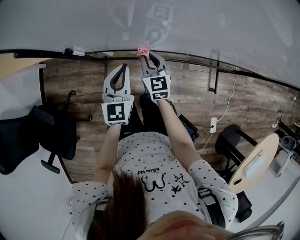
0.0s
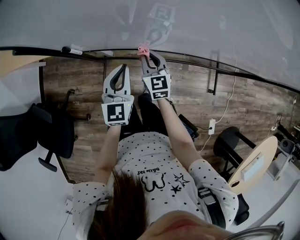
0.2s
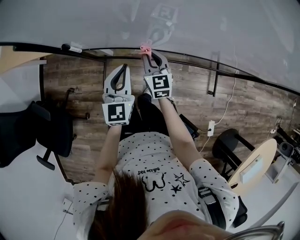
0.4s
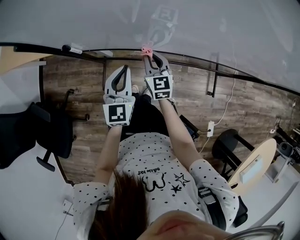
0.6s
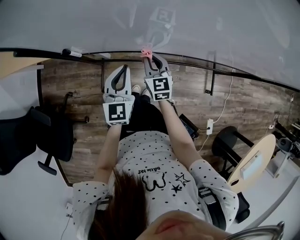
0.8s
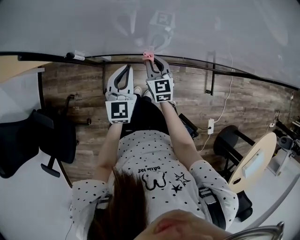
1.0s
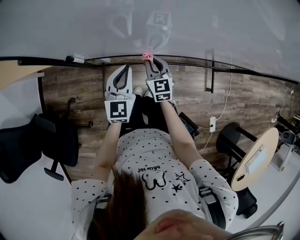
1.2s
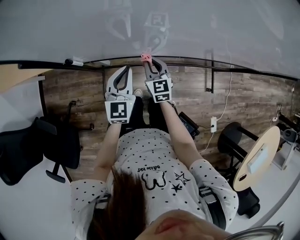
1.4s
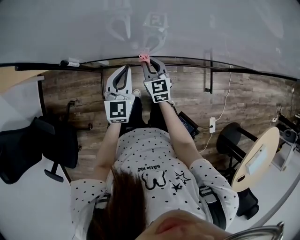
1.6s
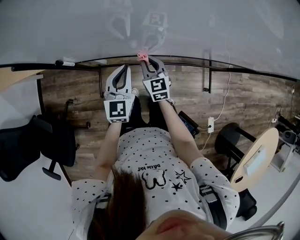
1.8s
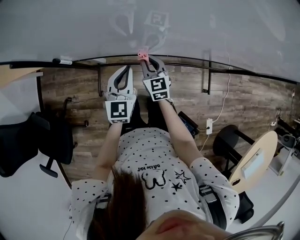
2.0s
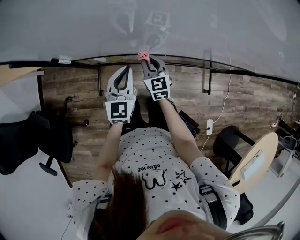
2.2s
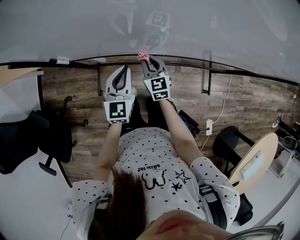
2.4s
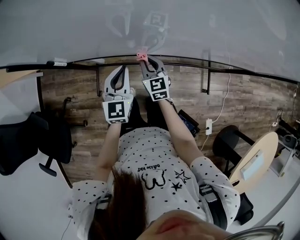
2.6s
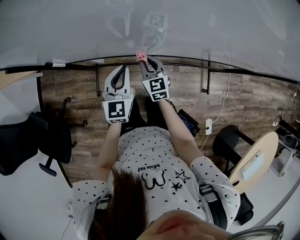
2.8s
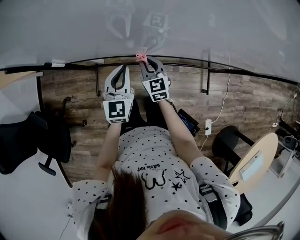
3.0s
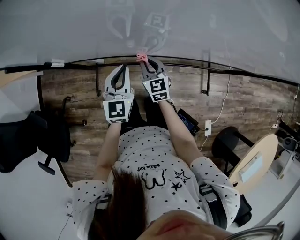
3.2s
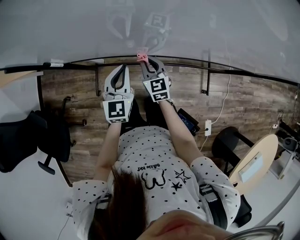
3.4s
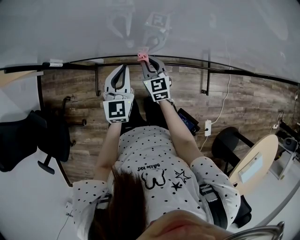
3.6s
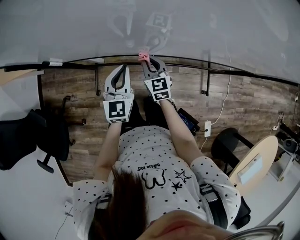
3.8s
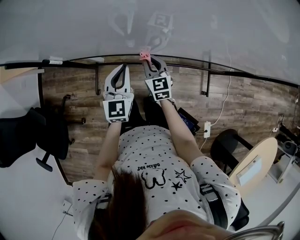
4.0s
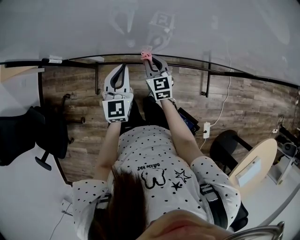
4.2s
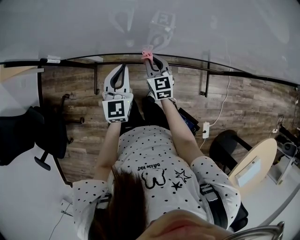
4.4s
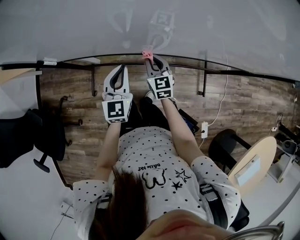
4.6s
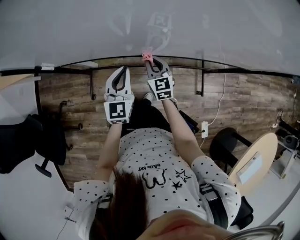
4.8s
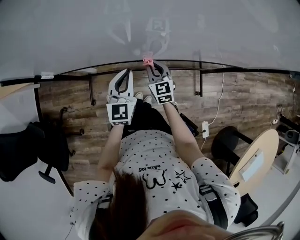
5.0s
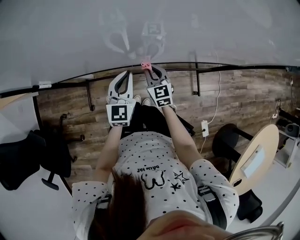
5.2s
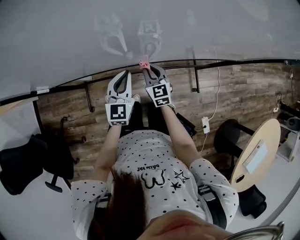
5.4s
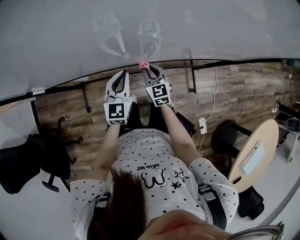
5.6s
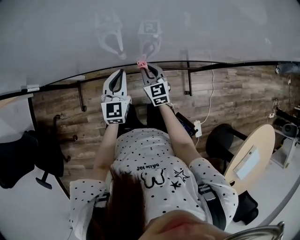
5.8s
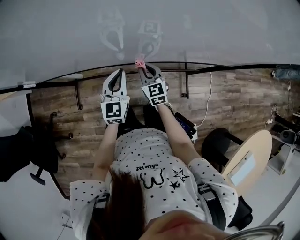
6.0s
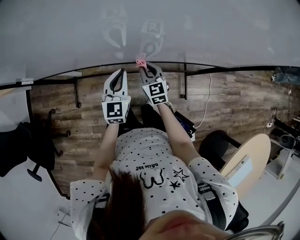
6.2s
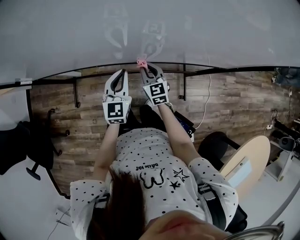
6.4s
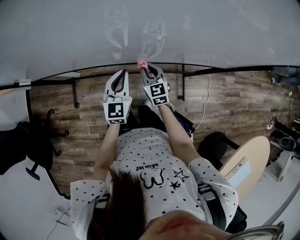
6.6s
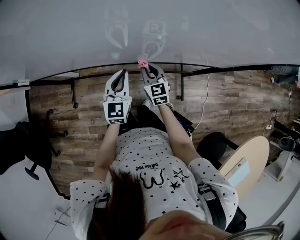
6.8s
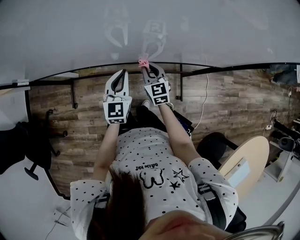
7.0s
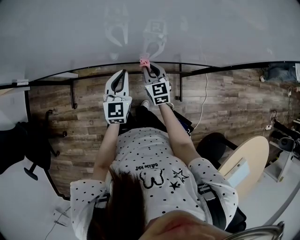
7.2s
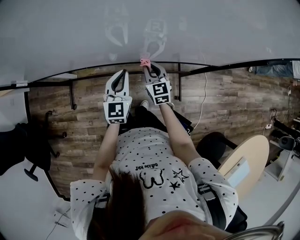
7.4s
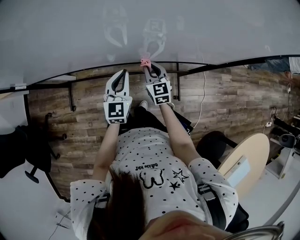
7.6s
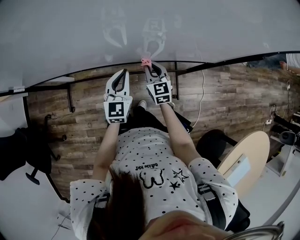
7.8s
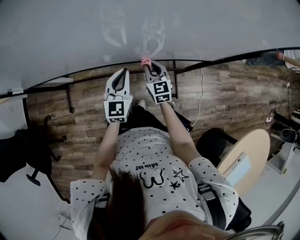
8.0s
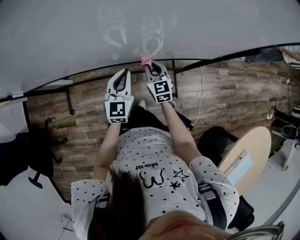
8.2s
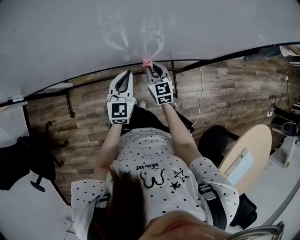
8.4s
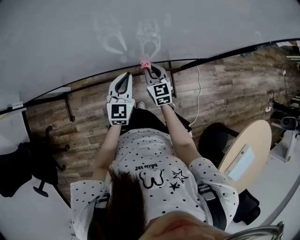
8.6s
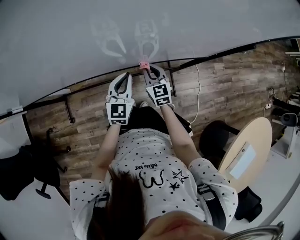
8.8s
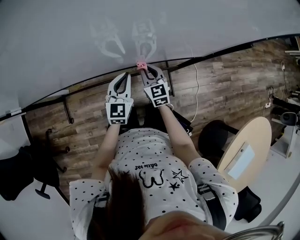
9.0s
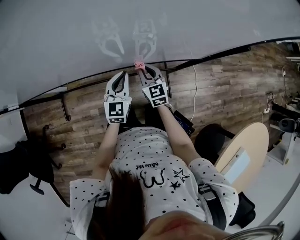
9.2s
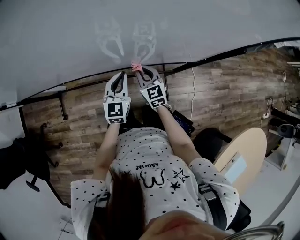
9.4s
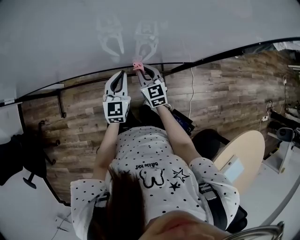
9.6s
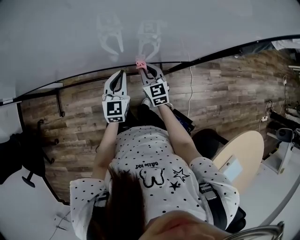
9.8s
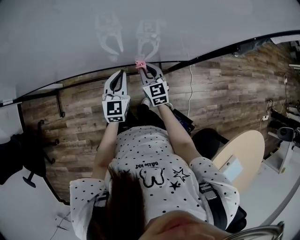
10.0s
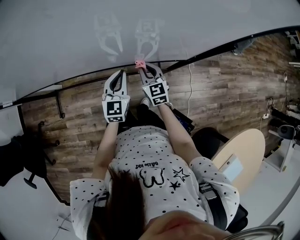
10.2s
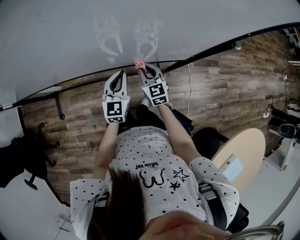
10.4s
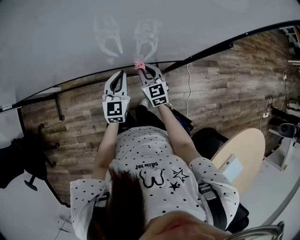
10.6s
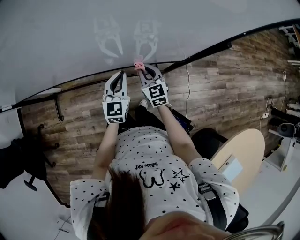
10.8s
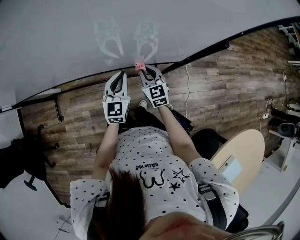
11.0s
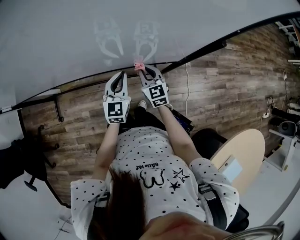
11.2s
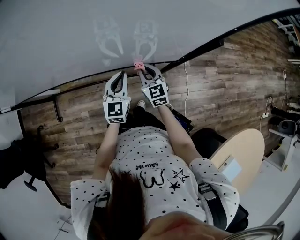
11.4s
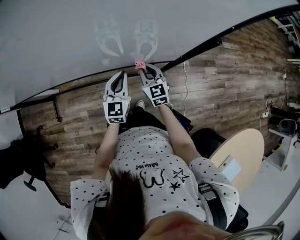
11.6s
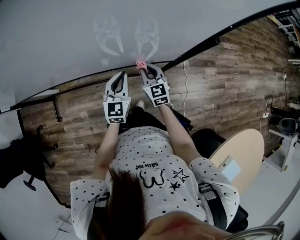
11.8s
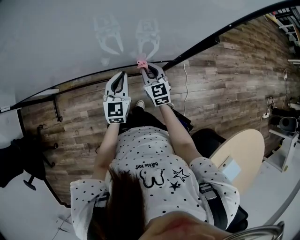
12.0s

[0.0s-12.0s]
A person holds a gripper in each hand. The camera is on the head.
0.0s to 1.6s: There are only small adjustments of the grippers.
1.6s to 3.0s: The two grippers go some 10 cm to the right.
3.0s to 4.4s: The right gripper is displaced to the right by roughly 5 cm.
4.4s to 6.0s: The two grippers go about 15 cm to the right.
6.0s to 7.6s: Both grippers move to the right, roughly 15 cm.
7.6s to 9.0s: The two grippers go roughly 5 cm to the right.
9.0s to 10.4s: Both grippers travel together to the right, approximately 10 cm.
10.4s to 12.0s: The grippers both shift to the right by about 5 cm.

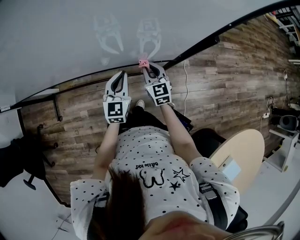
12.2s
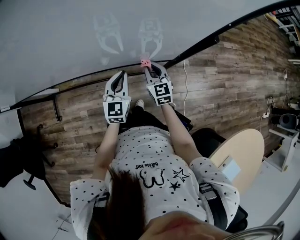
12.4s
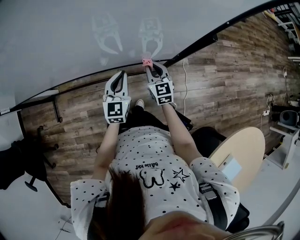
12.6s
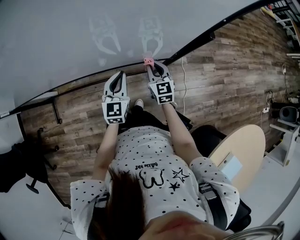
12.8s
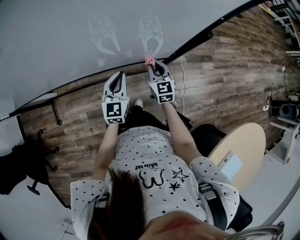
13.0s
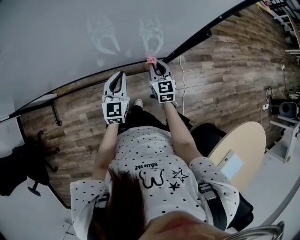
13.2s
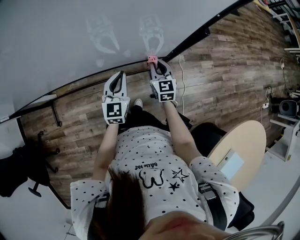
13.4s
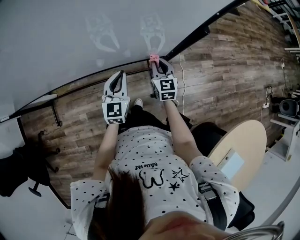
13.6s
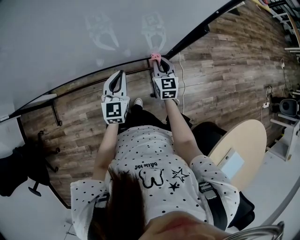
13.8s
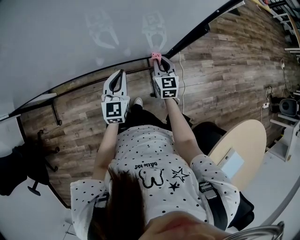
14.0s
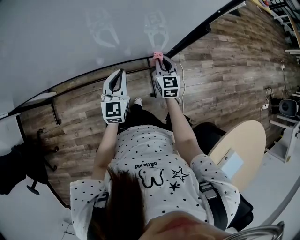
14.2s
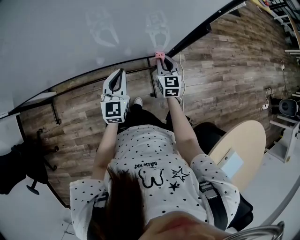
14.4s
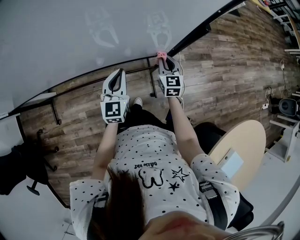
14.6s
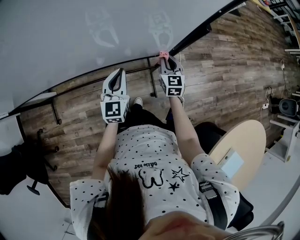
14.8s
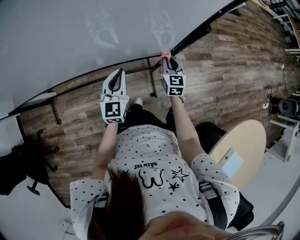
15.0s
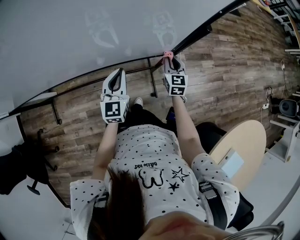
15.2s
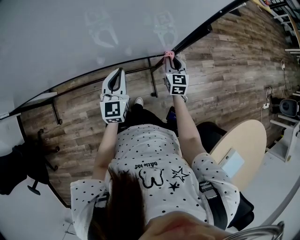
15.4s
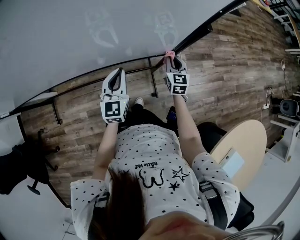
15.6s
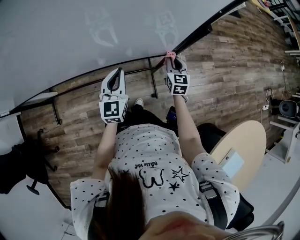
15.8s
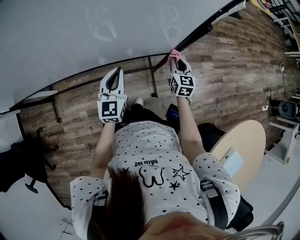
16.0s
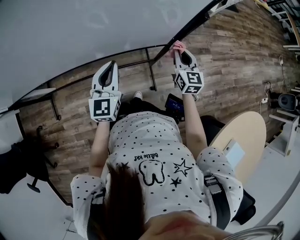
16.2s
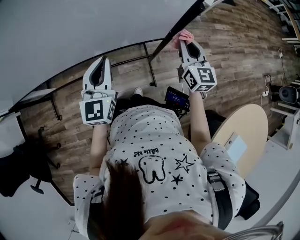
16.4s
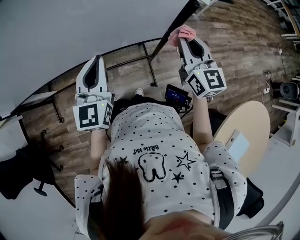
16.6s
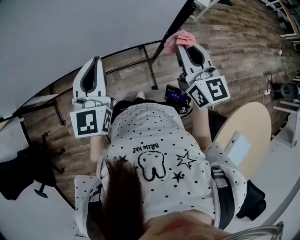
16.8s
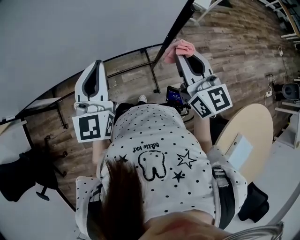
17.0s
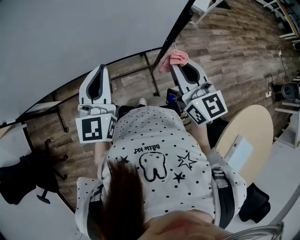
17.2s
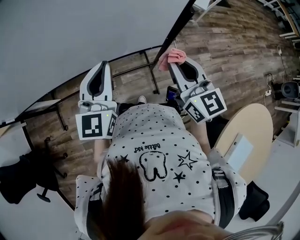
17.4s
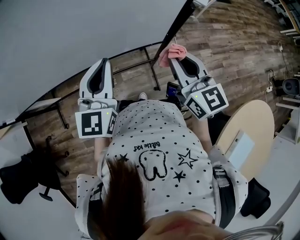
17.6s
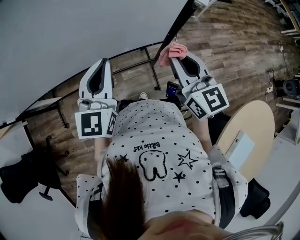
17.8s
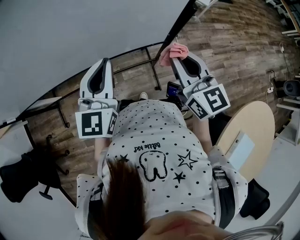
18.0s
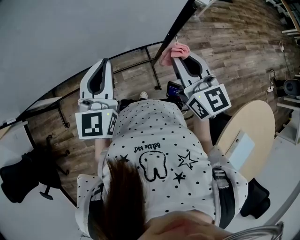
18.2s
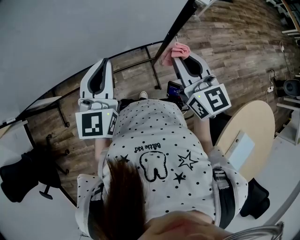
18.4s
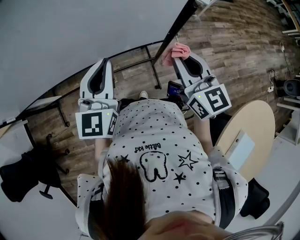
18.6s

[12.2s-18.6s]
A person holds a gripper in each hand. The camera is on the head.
12.2s to 13.8s: The right gripper travels to the right by about 10 cm.
13.8s to 15.4s: The right gripper heads to the right, covering some 5 cm.
15.4s to 17.0s: The left gripper travels upward by approximately 20 cm; the right gripper travels upward and backward by approximately 30 cm, and swivels roughly 30 degrees.
17.0s to 18.6s: The grippers make only small movements.

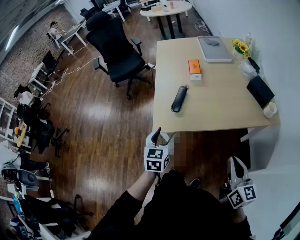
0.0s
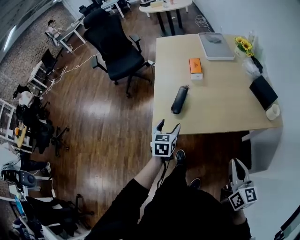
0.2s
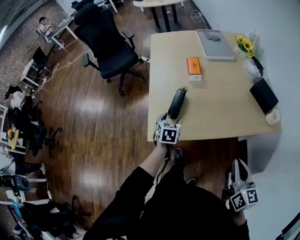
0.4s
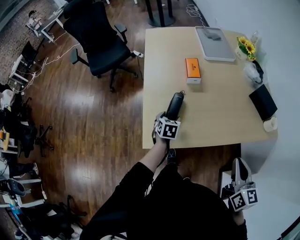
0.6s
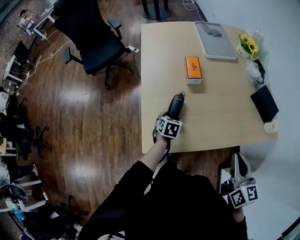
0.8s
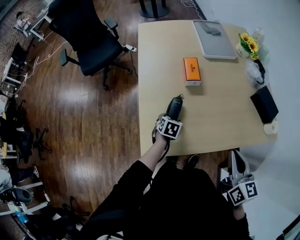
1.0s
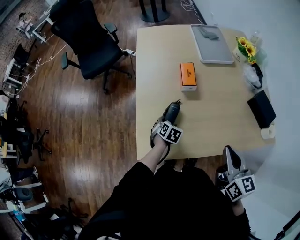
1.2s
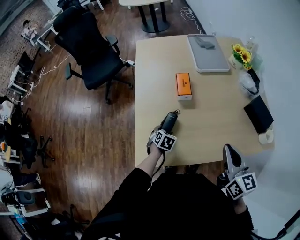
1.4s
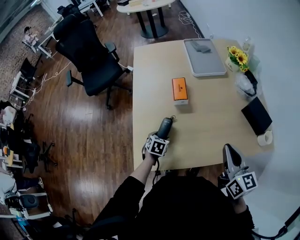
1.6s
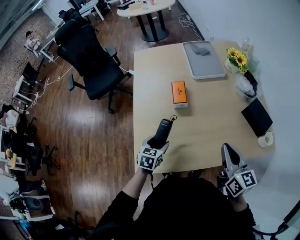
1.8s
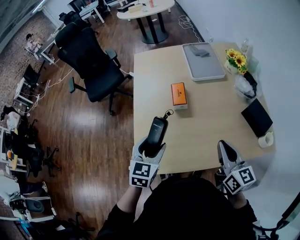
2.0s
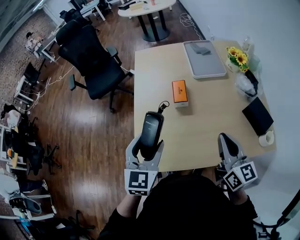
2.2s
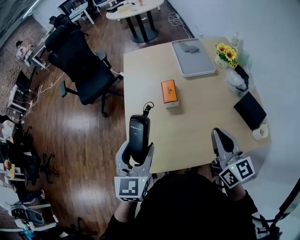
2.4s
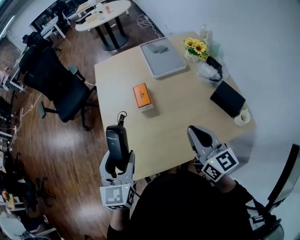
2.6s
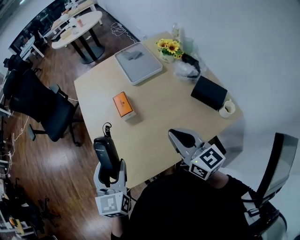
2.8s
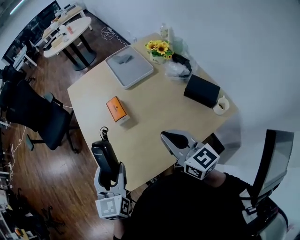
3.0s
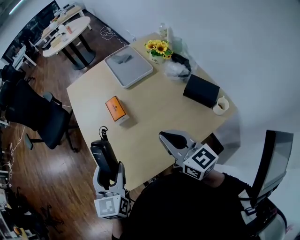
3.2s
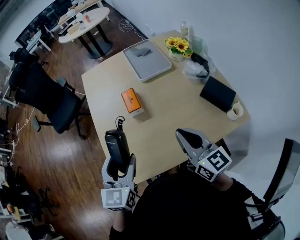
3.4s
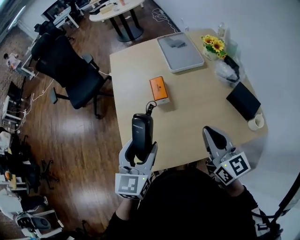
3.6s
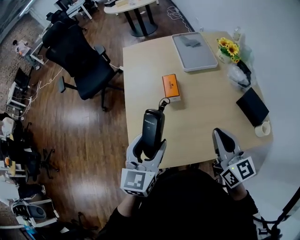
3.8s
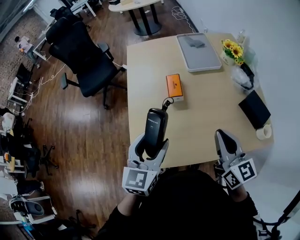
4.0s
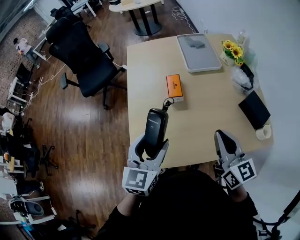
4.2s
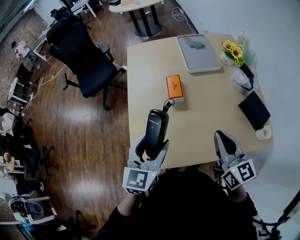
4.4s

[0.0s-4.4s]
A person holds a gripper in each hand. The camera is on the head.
0.0s to 1.4s: The left gripper goes roughly 35 cm forward and downward, and angles its fingers downward, by some 30 degrees, while the right gripper heads forward, covering some 30 cm.
1.4s to 3.0s: The right gripper shifts by about 5 cm; the left gripper moves upward, roughly 35 cm, and tips its fingers upward by approximately 40 degrees.
3.0s to 4.4s: The grippers stay close to where they were, moving slightly.

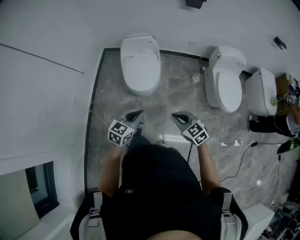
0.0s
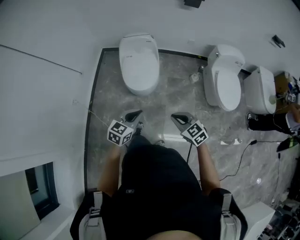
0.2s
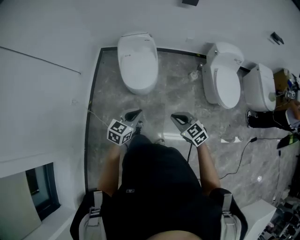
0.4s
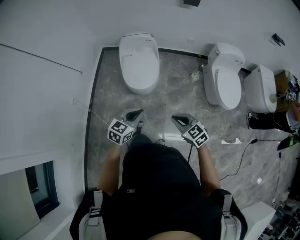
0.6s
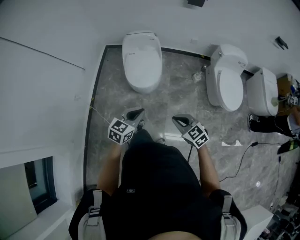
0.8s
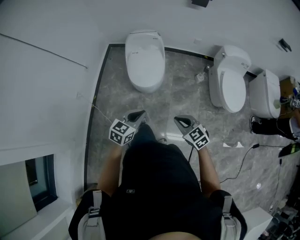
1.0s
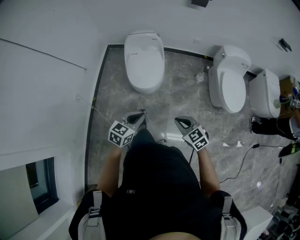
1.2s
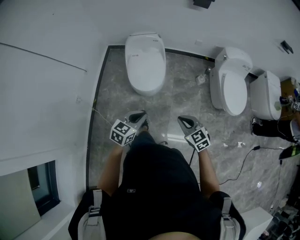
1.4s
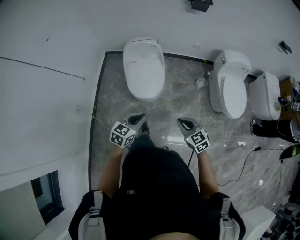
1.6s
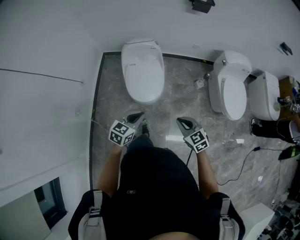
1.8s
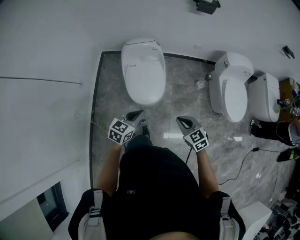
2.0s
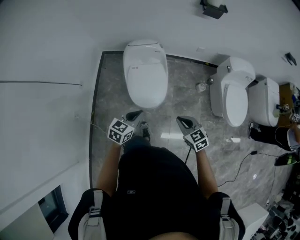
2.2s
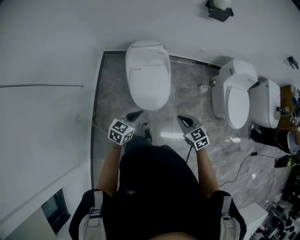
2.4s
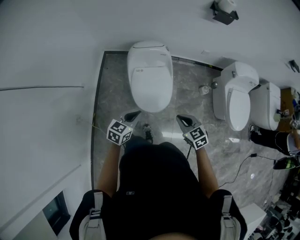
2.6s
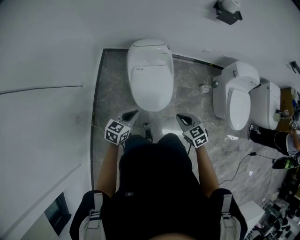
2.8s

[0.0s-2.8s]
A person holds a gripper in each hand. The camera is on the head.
0.0s to 1.4s: The grippers stay close to where they were, moving slightly.
1.4s to 2.8s: Both grippers travel together forward and to the left, about 35 cm.
